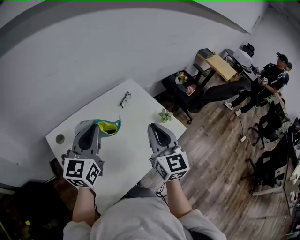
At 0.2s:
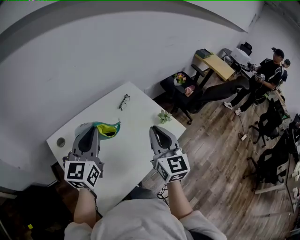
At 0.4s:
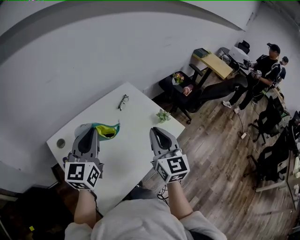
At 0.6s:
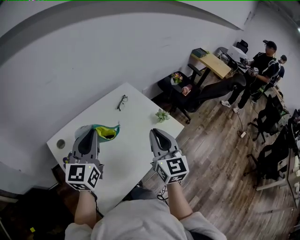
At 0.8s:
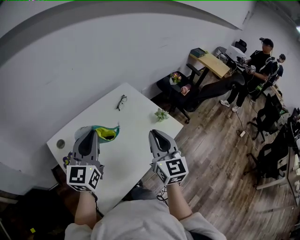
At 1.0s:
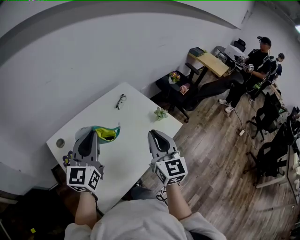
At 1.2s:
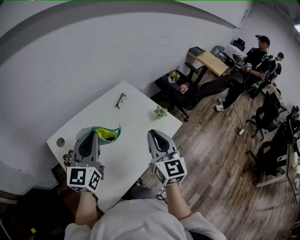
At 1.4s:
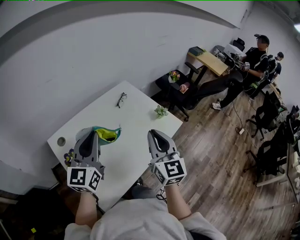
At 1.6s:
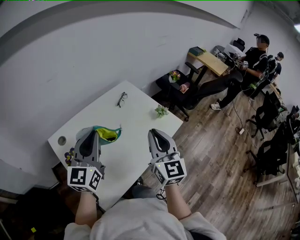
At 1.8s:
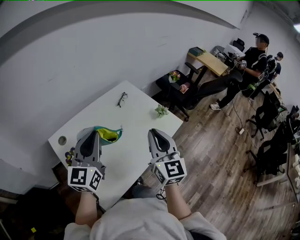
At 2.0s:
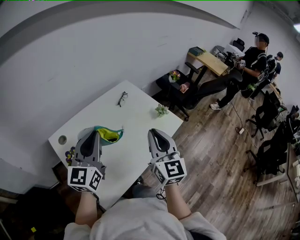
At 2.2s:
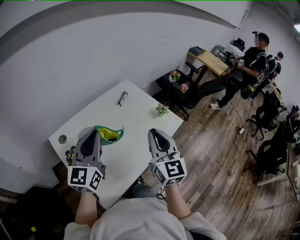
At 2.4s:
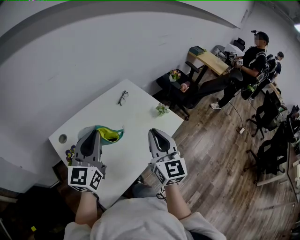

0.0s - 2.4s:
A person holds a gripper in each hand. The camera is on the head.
0.0s - 1.2s: The right gripper heads backward, covering approximately 5 cm.
1.2s - 2.4s: The grippers make only small movements.

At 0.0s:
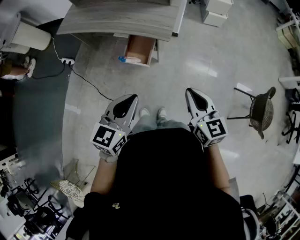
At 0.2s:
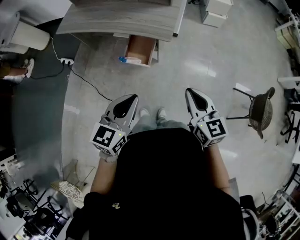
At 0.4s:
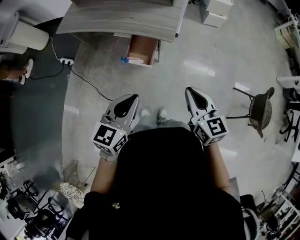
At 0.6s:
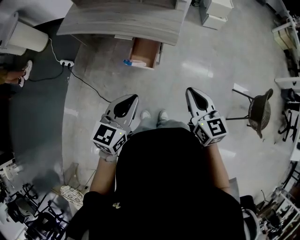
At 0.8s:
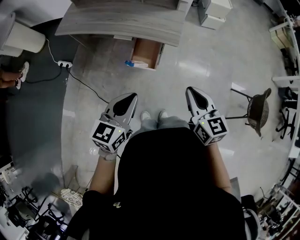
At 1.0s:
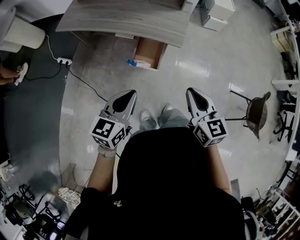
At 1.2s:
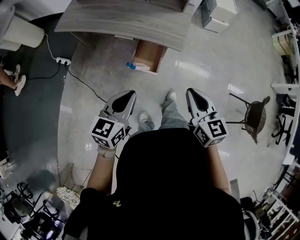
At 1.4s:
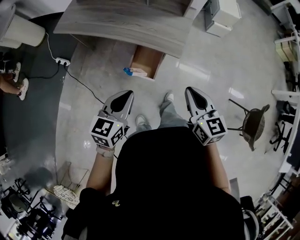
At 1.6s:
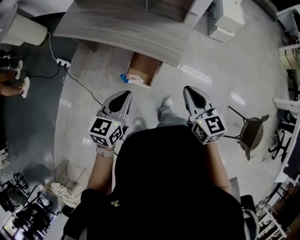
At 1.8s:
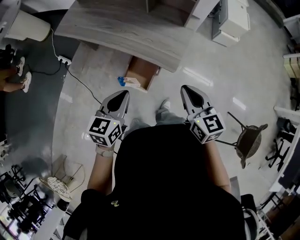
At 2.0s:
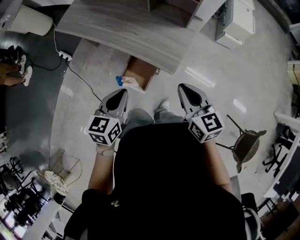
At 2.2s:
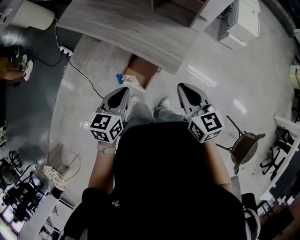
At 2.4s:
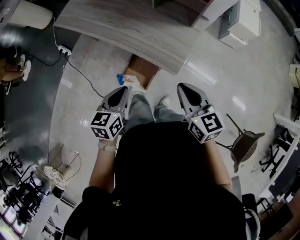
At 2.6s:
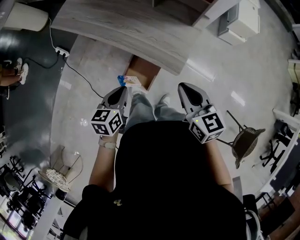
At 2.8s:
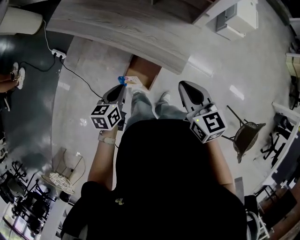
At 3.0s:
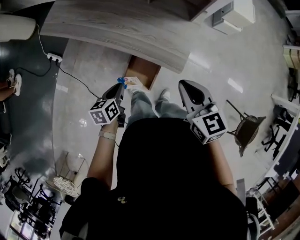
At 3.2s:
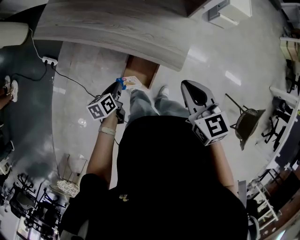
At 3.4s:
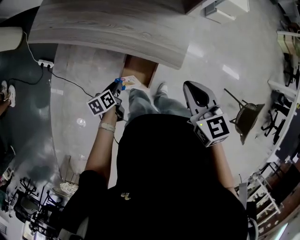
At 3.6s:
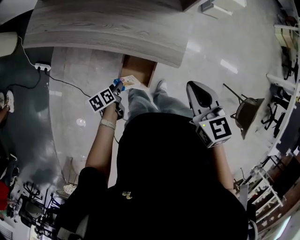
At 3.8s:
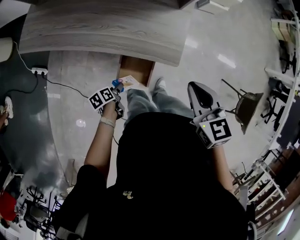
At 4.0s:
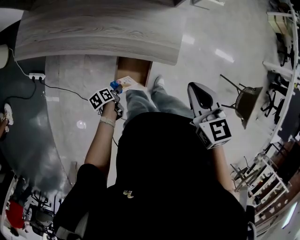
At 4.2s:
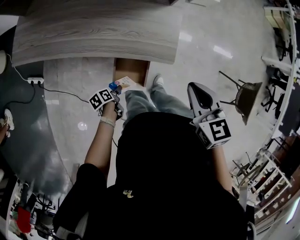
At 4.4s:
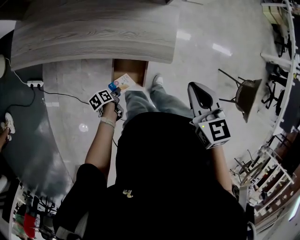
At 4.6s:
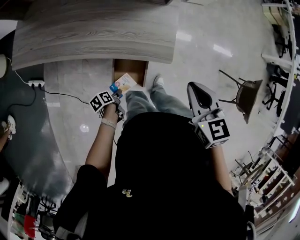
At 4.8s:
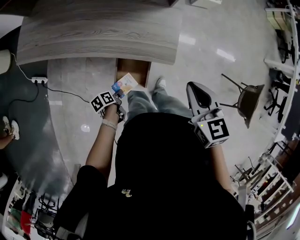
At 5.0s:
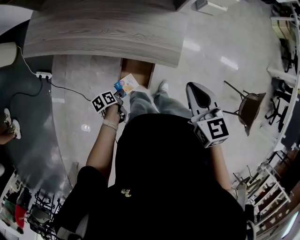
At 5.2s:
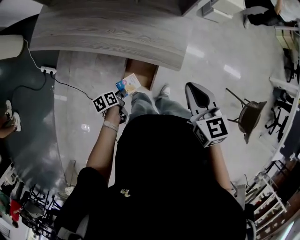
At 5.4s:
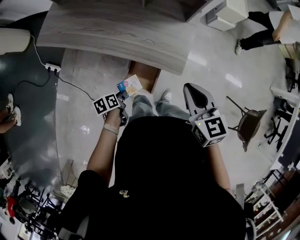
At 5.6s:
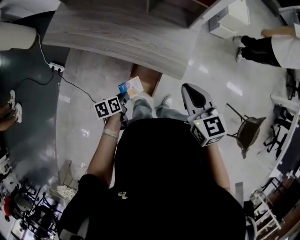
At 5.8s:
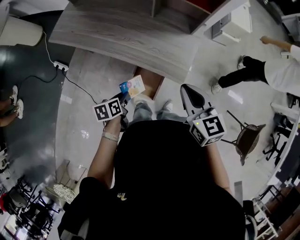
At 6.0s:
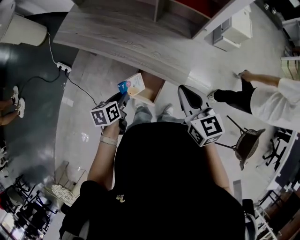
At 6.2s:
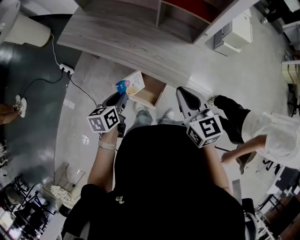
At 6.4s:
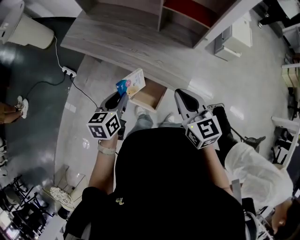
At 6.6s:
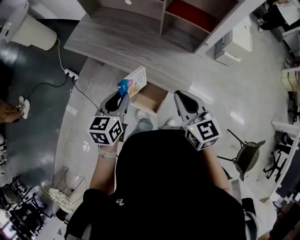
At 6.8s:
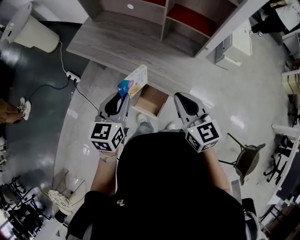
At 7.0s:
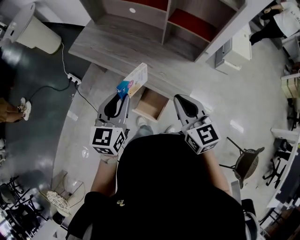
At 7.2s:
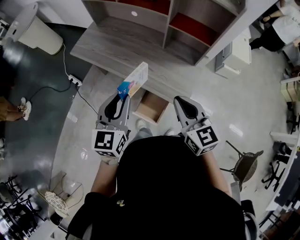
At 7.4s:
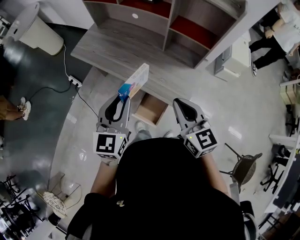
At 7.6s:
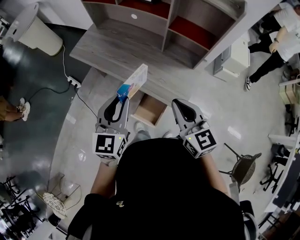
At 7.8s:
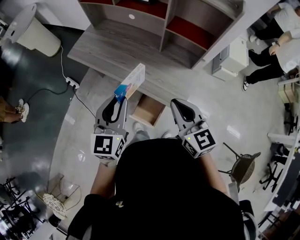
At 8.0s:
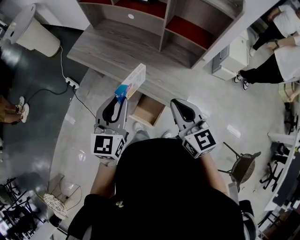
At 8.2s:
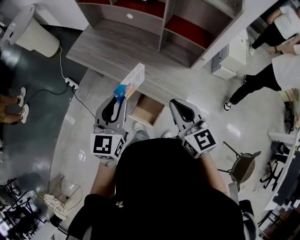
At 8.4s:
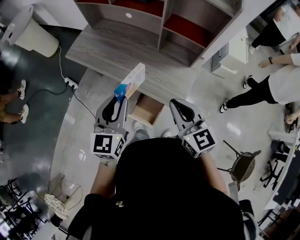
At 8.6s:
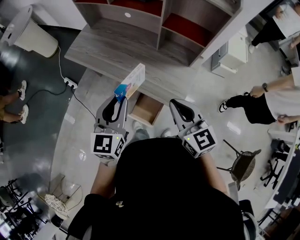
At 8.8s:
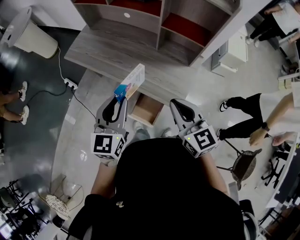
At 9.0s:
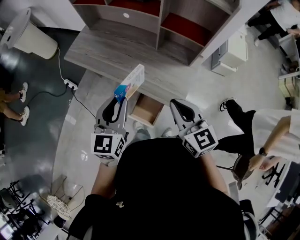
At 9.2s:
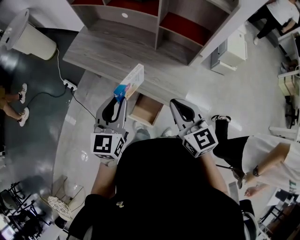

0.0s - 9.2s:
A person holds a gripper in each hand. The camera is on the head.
0.0s - 1.6s: The left gripper heads forward and to the left, covering about 20 cm. The right gripper heads forward, covering roughly 20 cm.
1.6s - 3.0s: The left gripper goes roughly 20 cm downward and forward, and turns by some 30 degrees. Meanwhile the right gripper moves forward, roughly 15 cm.
3.0s - 4.6s: The left gripper goes about 20 cm downward, rotates approximately 40 degrees, and opens its fingers, while the right gripper turns by approximately 20 degrees.
4.6s - 6.2s: The right gripper goes some 5 cm upward, and turns by roughly 30 degrees. The left gripper heads upward, covering some 30 cm, and turns by approximately 40 degrees.
6.2s - 7.6s: The left gripper is displaced upward by some 20 cm, and turns by approximately 50 degrees. The right gripper is displaced upward by roughly 5 cm.
7.6s - 9.2s: The grippers make only small movements.

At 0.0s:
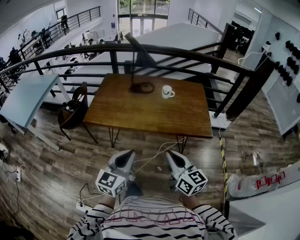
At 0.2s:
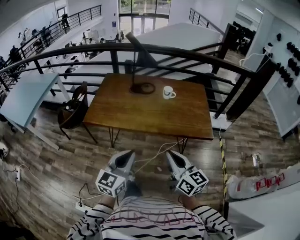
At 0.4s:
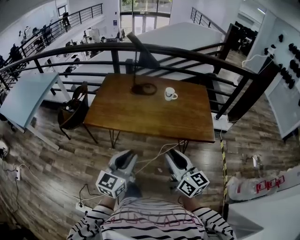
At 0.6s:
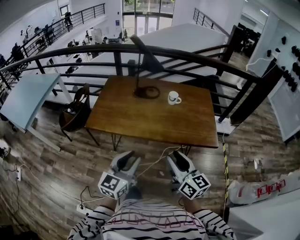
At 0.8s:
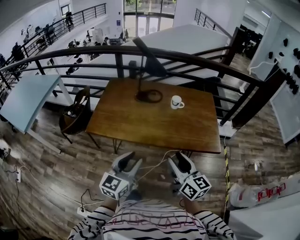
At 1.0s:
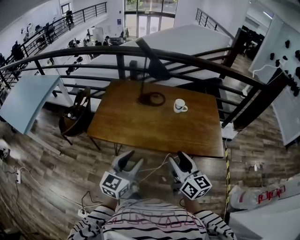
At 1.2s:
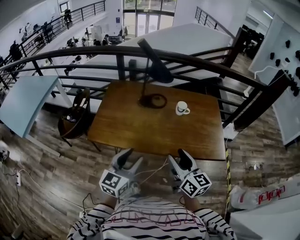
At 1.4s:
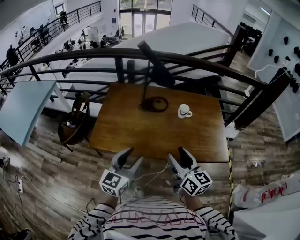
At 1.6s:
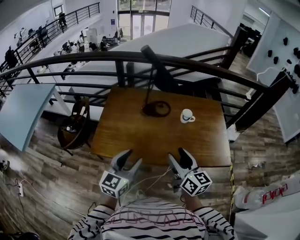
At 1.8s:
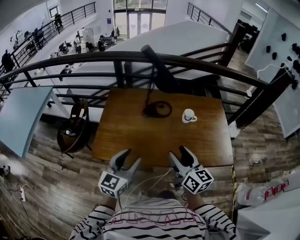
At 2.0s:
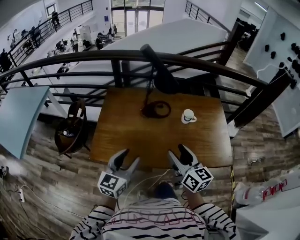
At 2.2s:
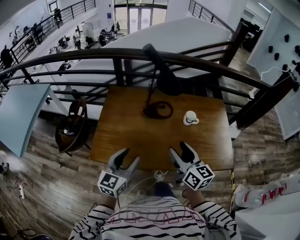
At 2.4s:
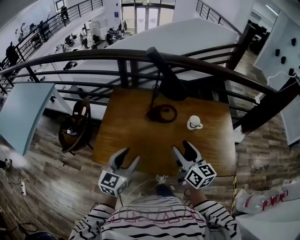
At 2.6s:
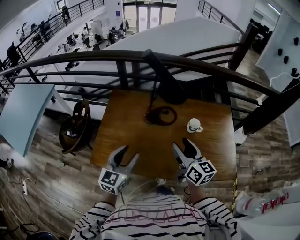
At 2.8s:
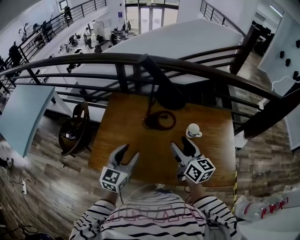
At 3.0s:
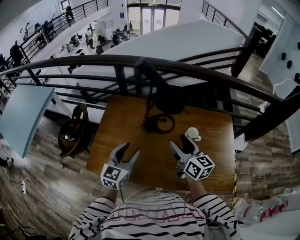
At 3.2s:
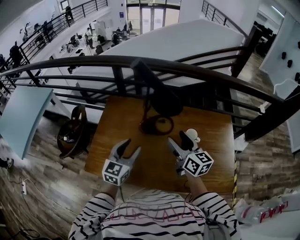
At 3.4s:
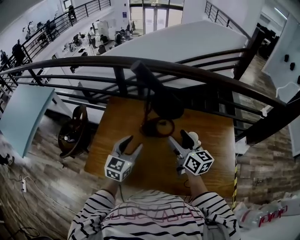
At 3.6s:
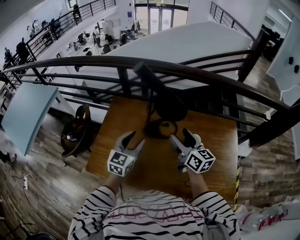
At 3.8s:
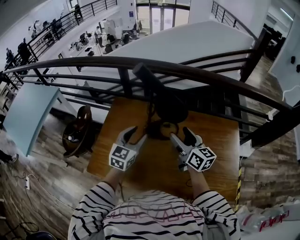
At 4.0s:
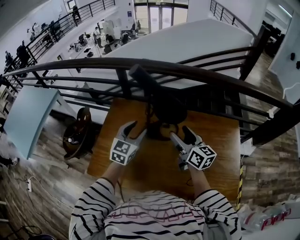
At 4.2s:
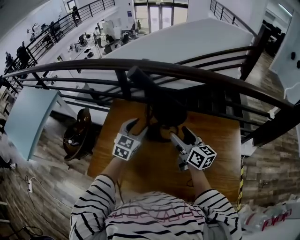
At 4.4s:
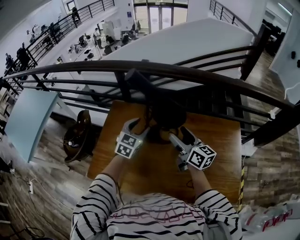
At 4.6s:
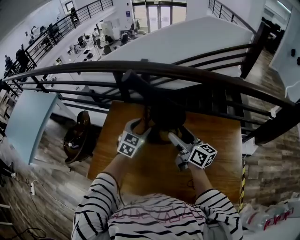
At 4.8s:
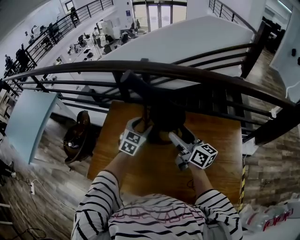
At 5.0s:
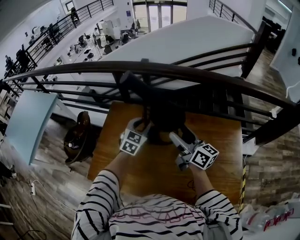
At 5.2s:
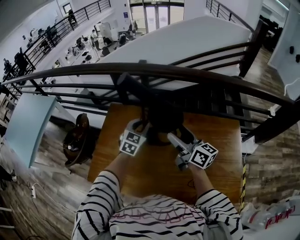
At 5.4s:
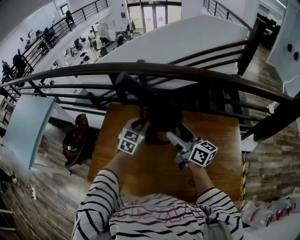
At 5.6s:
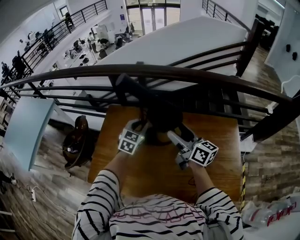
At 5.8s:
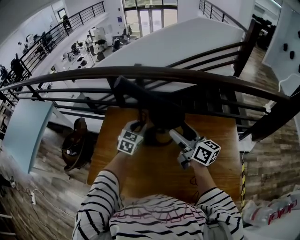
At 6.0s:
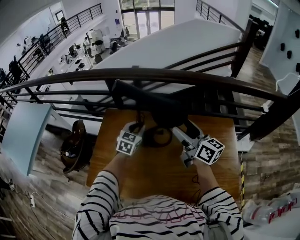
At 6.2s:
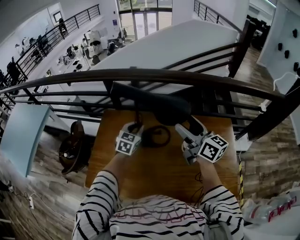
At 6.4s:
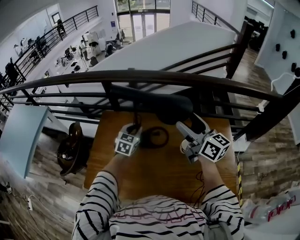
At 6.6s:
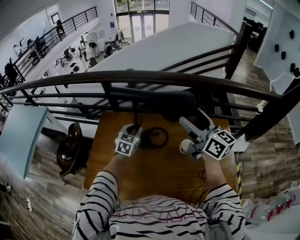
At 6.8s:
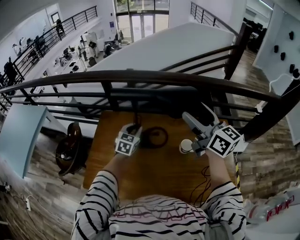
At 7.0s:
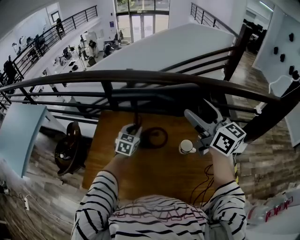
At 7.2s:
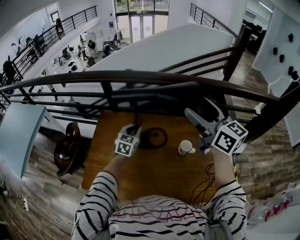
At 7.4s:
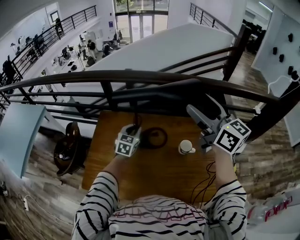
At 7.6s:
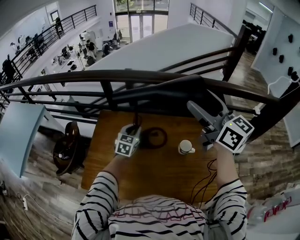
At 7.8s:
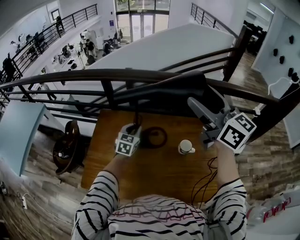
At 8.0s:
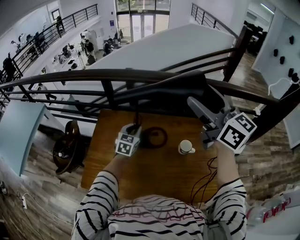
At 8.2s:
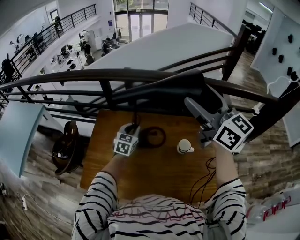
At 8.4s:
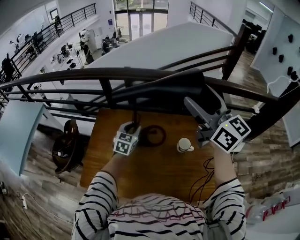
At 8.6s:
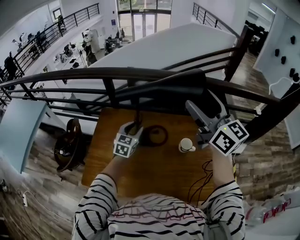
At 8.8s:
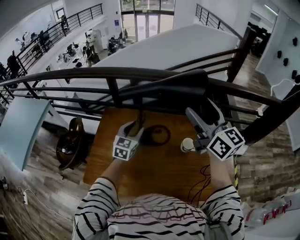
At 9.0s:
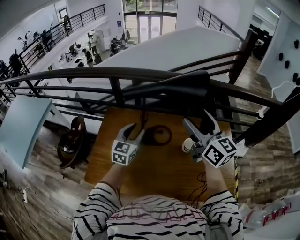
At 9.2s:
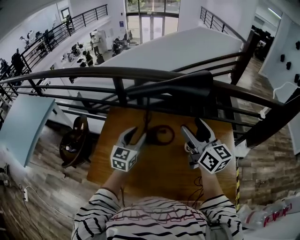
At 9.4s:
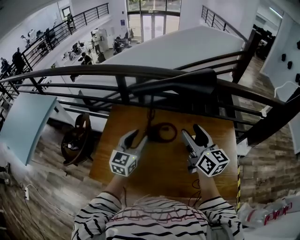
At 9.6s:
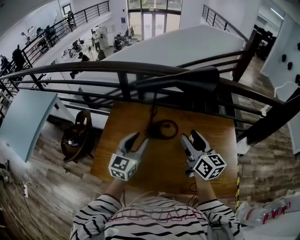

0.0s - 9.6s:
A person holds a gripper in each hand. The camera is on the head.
0.0s - 1.6s: The two grippers go about 35 cm forward and to the left. The right gripper opens its fingers. Meanwhile the left gripper opens.
1.6s - 3.2s: The two grippers go approximately 30 cm forward.
3.2s - 4.8s: The left gripper moves forward, some 20 cm; the right gripper heads forward, covering about 10 cm.
4.8s - 6.4s: The left gripper closes. The right gripper travels upward and to the right by roughly 10 cm.
6.4s - 8.0s: The right gripper travels upward by roughly 15 cm.
8.0s - 9.6s: The left gripper shifts approximately 25 cm backward and upward, and opens up, while the right gripper travels downward and backward by approximately 20 cm, and turns by roughly 20 degrees.

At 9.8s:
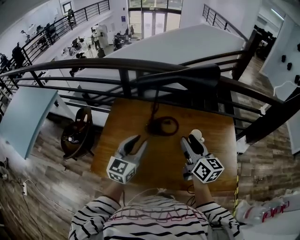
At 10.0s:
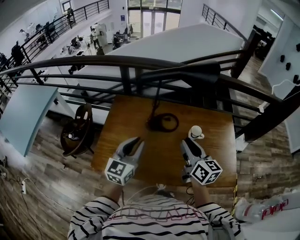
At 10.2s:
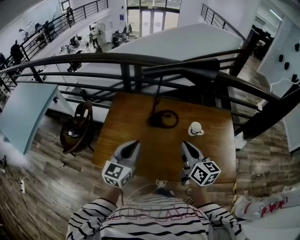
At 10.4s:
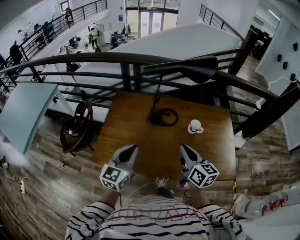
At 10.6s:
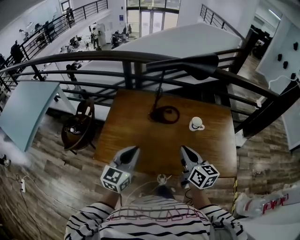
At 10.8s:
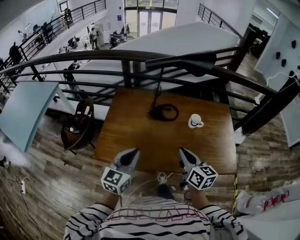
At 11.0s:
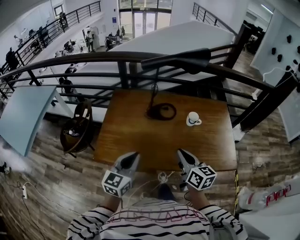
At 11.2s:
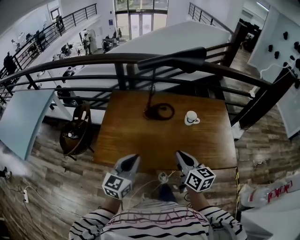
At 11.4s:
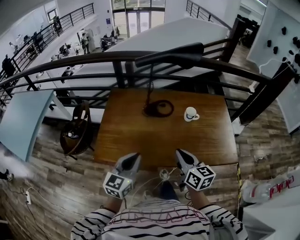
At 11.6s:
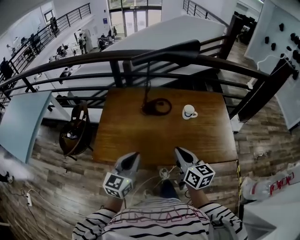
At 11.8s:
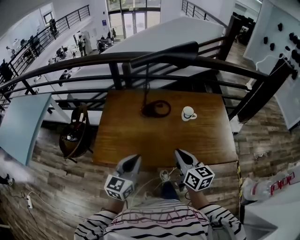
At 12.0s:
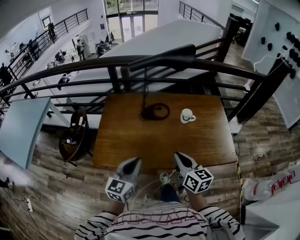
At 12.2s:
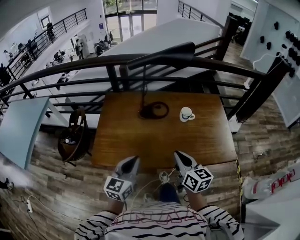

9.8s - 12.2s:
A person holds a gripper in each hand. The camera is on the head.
9.8s - 11.0s: Both grippers travel together backward, some 20 cm. The right gripper closes. Meanwhile the left gripper closes.
11.0s - 12.2s: The grippers stay close to where they were, moving slightly.
